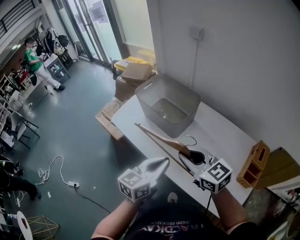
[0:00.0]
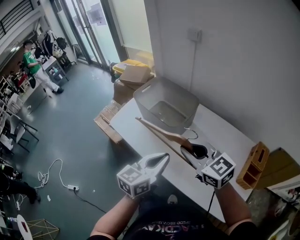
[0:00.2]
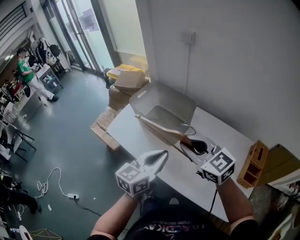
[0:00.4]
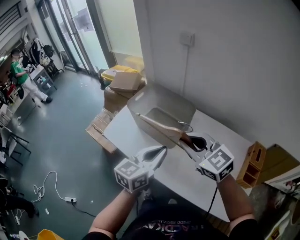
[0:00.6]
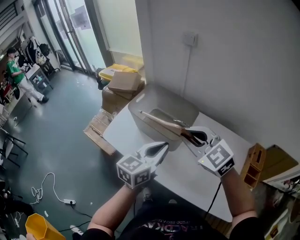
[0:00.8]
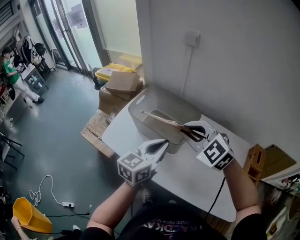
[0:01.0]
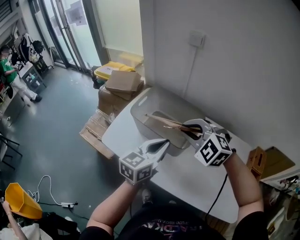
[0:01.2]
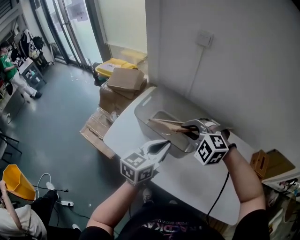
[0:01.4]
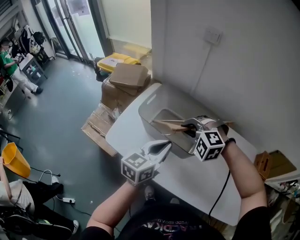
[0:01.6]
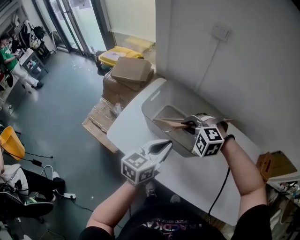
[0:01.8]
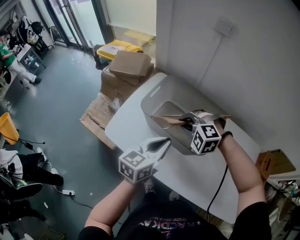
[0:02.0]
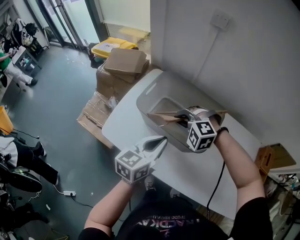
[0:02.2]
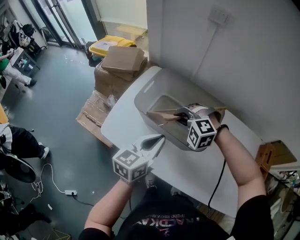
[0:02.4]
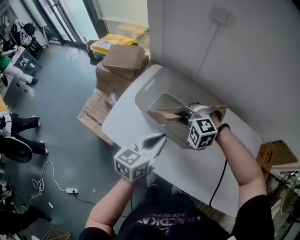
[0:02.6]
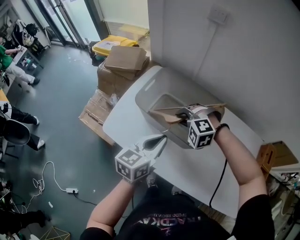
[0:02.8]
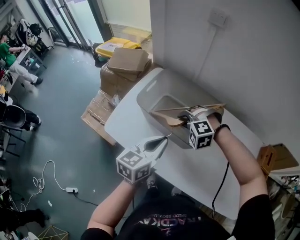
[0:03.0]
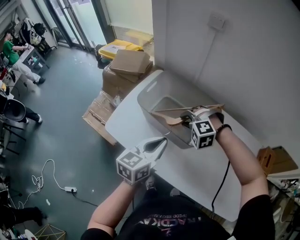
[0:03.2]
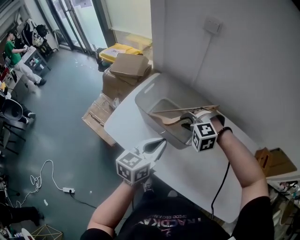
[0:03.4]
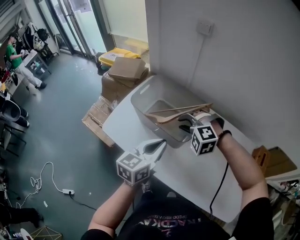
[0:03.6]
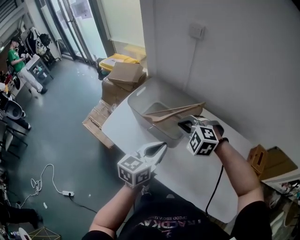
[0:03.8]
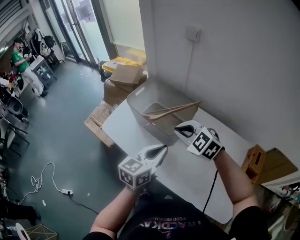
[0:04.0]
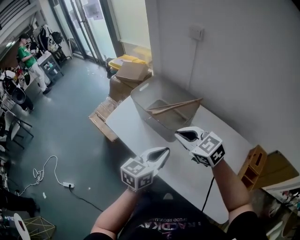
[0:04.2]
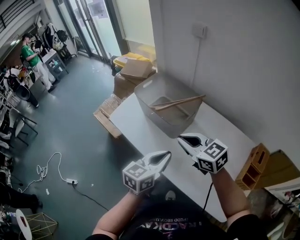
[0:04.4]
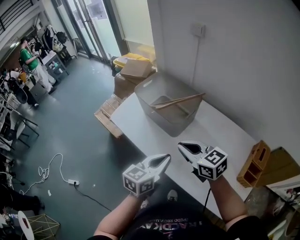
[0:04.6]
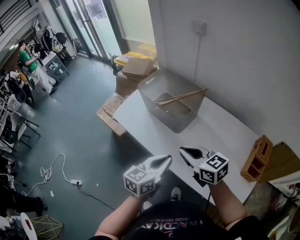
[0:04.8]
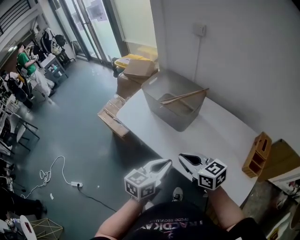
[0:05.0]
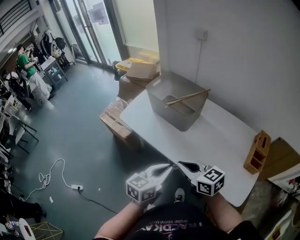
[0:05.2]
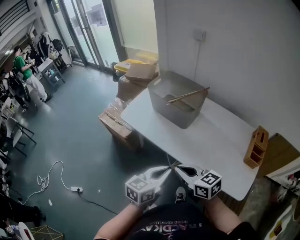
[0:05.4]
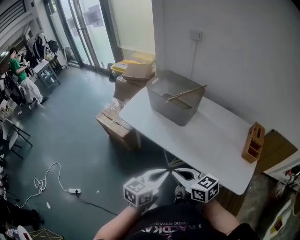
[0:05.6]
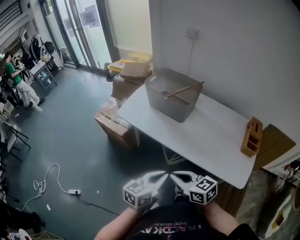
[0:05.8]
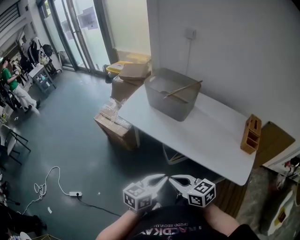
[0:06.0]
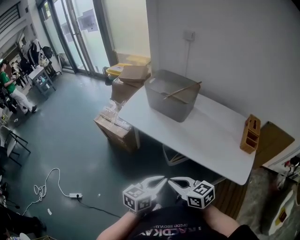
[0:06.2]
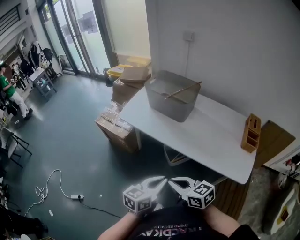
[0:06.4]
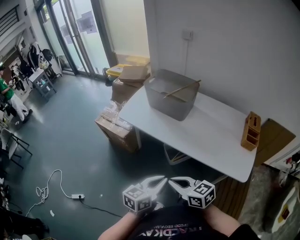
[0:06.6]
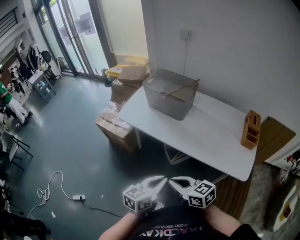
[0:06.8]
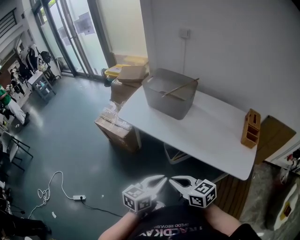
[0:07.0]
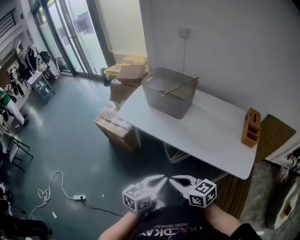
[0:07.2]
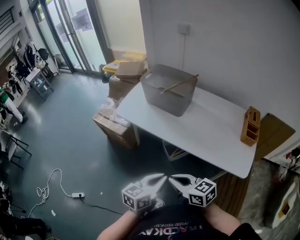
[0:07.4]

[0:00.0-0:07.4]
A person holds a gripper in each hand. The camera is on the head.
0:00.0 to 0:01.4: The two grippers go approximately 25 cm forward and to the left. The right gripper rotates around the line of its fingers by roughly 60 degrees, counterclockwise from behind.
0:01.4 to 0:03.0: The left gripper shifts roughly 5 cm downward; the right gripper goes about 15 cm downward, and rotates roughly 20 degrees.
0:03.0 to 0:04.4: The right gripper shifts roughly 30 cm backward, upward and to the right, twists about 60 degrees clockwise, seen from behind, and closes up, while the left gripper heads backward and to the right, covering some 25 cm.
0:04.4 to 0:06.0: Both grippers move backward and to the left, some 35 cm. The right gripper turns by roughly 20 degrees.
0:06.0 to 0:07.4: There are only small adjustments of the grippers.

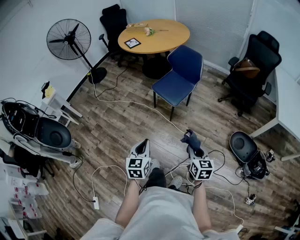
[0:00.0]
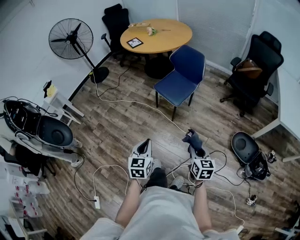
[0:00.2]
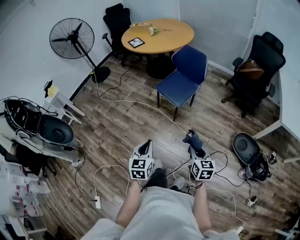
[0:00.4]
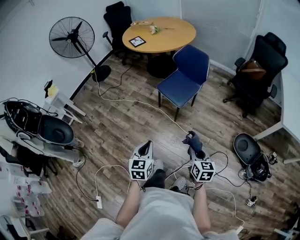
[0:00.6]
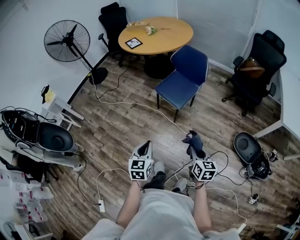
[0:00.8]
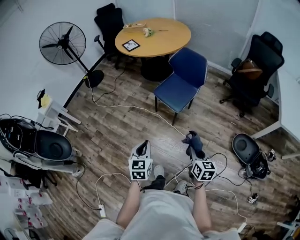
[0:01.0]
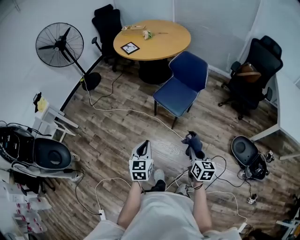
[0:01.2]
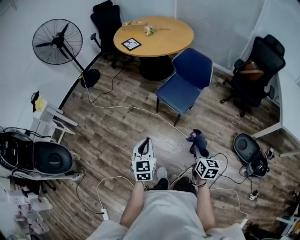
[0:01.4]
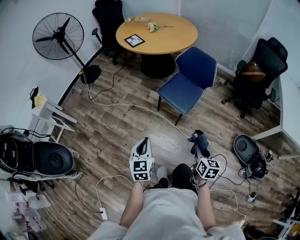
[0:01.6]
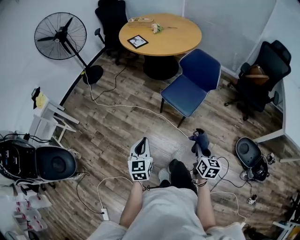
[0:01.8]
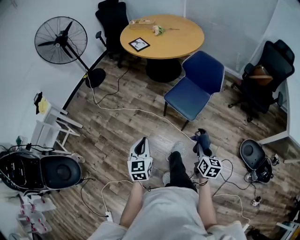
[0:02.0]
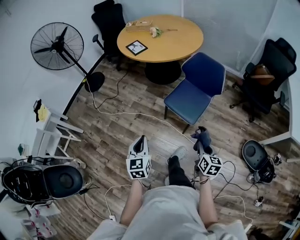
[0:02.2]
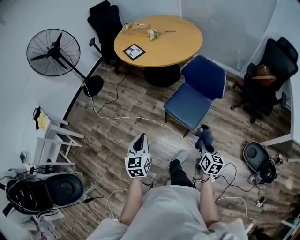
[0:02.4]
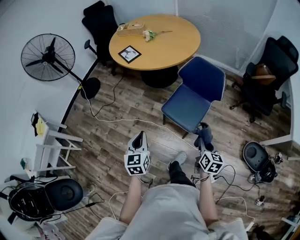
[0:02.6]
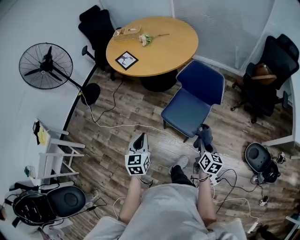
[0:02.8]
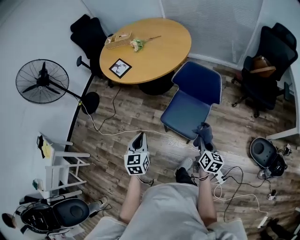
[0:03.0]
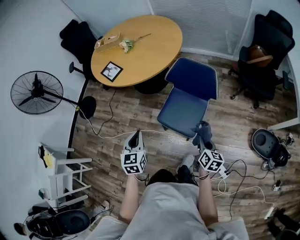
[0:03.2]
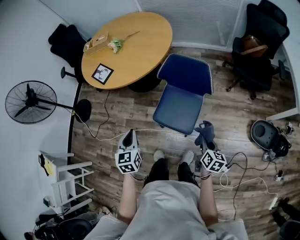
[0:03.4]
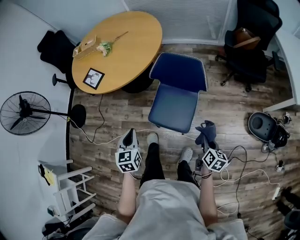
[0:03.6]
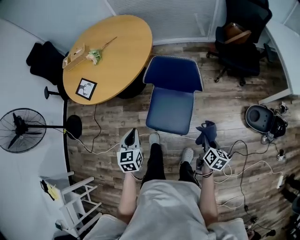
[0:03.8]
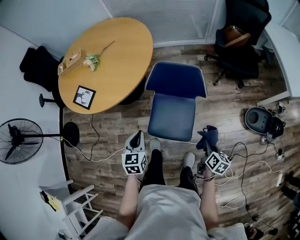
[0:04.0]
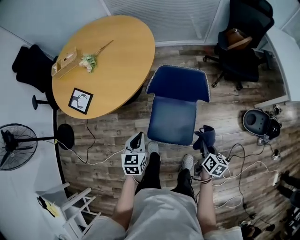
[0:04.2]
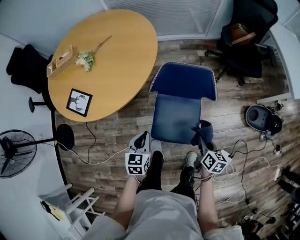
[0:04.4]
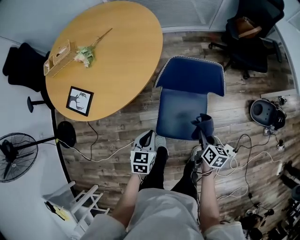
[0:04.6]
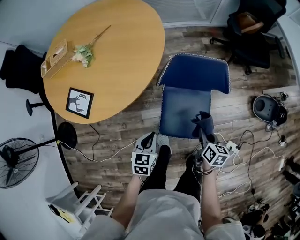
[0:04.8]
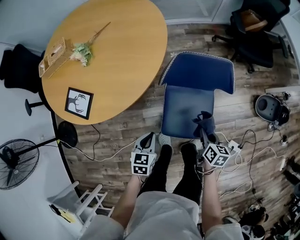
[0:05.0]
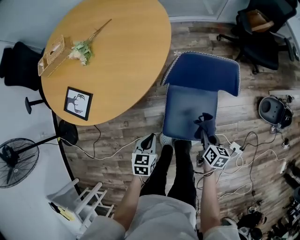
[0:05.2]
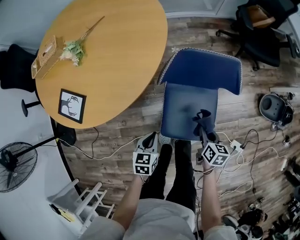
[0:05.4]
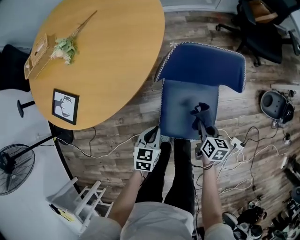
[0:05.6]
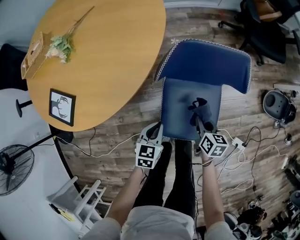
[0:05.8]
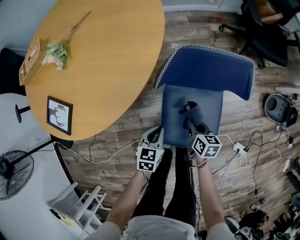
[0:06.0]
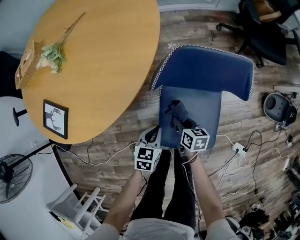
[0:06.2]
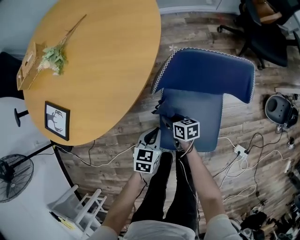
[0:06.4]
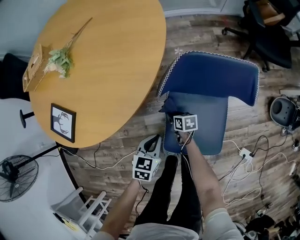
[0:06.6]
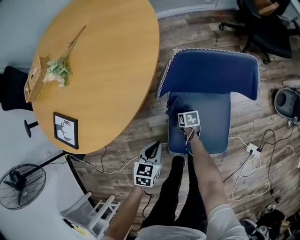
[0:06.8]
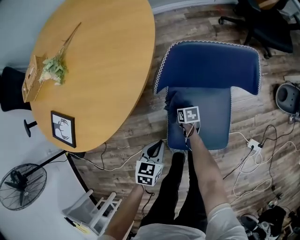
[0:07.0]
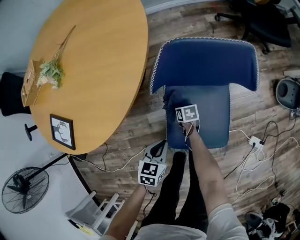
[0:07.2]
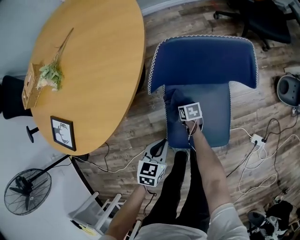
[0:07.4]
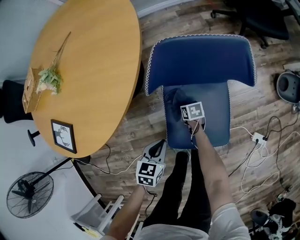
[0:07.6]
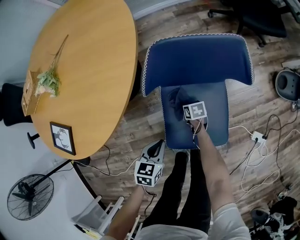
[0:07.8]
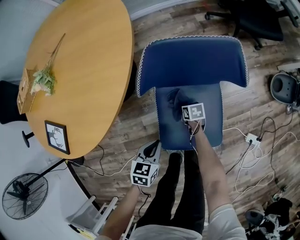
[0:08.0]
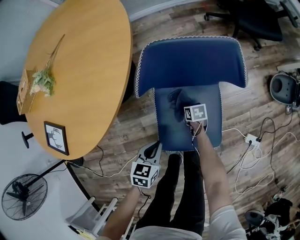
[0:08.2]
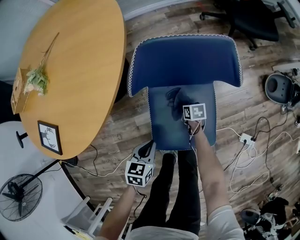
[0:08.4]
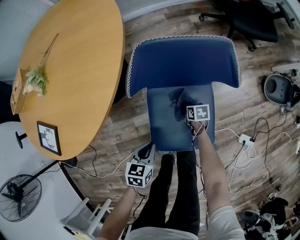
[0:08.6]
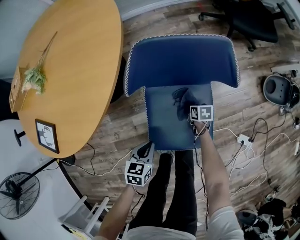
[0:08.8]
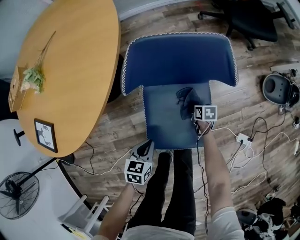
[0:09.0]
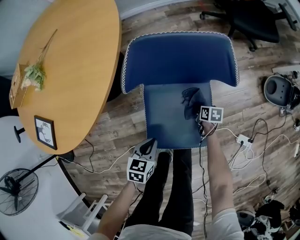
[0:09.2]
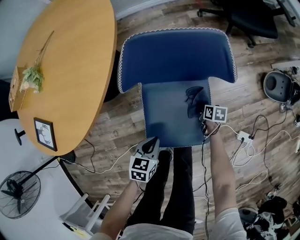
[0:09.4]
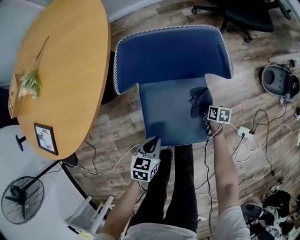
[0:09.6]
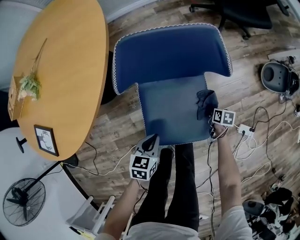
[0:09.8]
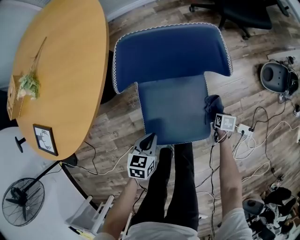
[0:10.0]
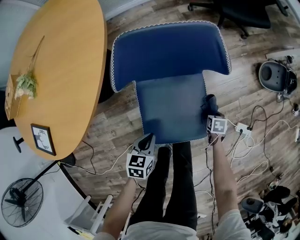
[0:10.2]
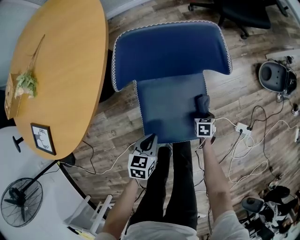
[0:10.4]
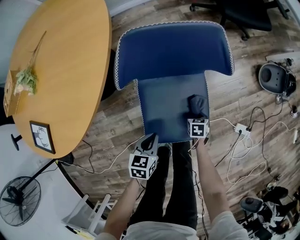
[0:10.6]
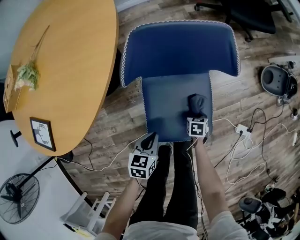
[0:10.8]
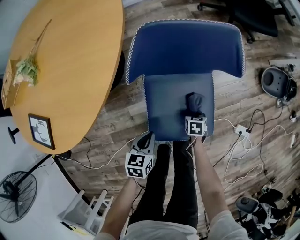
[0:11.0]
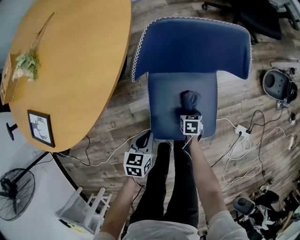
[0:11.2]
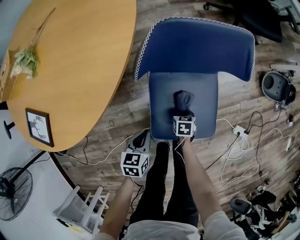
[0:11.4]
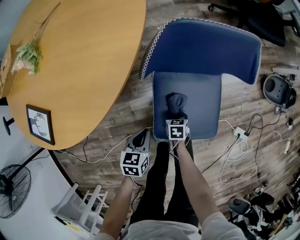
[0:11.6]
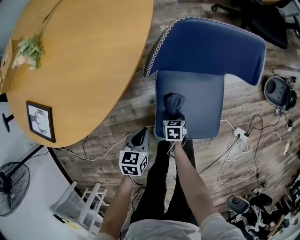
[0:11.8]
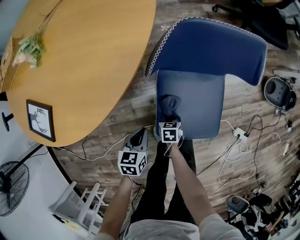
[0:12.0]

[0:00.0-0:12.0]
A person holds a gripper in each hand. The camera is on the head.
0:00.0 to 0:01.6: Both grippers move forward and to the left, approximately 20 cm.
0:01.6 to 0:03.0: The two grippers go roughly 35 cm forward.
0:03.0 to 0:04.4: The right gripper shifts by approximately 15 cm, and turns by roughly 20 degrees. Meanwhile the left gripper changes place by approximately 30 cm, and turns by about 30 degrees.
0:04.4 to 0:06.0: The left gripper is displaced downward by roughly 20 cm. The right gripper travels downward, to the left and forward by some 30 cm.
0:06.0 to 0:07.6: The right gripper shifts roughly 20 cm downward, and rotates about 20 degrees.
0:07.6 to 0:09.0: The right gripper heads to the right, covering some 15 cm.
0:09.0 to 0:10.4: The right gripper rotates roughly 20 degrees.
0:10.4 to 0:12.0: The left gripper heads to the left, covering approximately 15 cm, while the right gripper goes some 30 cm to the left.

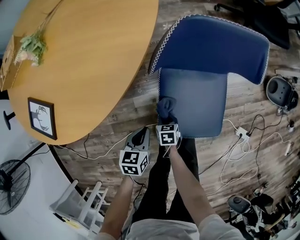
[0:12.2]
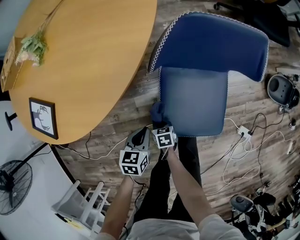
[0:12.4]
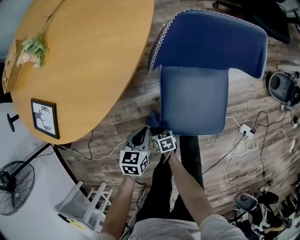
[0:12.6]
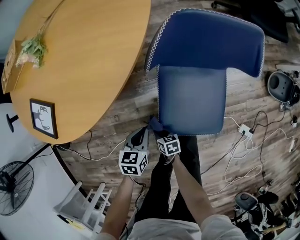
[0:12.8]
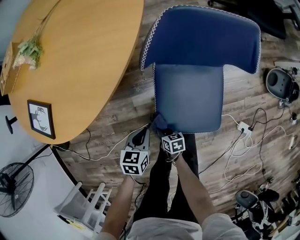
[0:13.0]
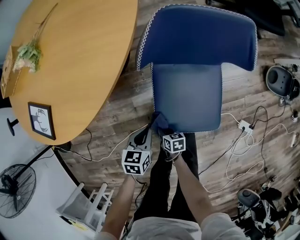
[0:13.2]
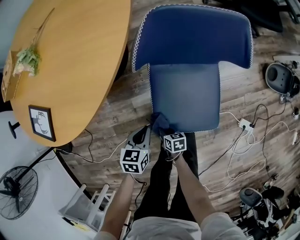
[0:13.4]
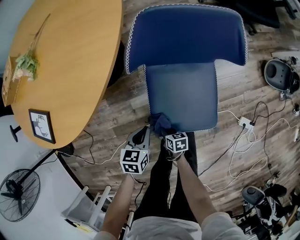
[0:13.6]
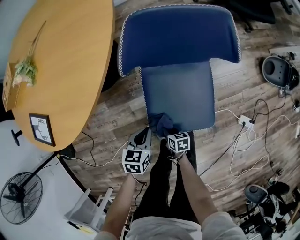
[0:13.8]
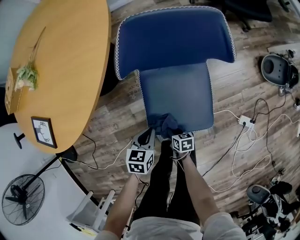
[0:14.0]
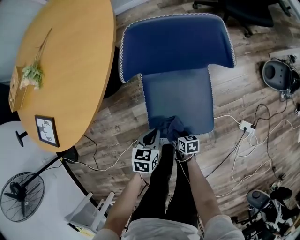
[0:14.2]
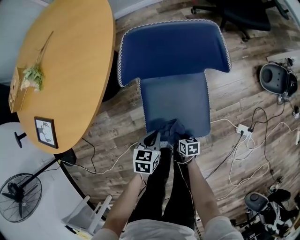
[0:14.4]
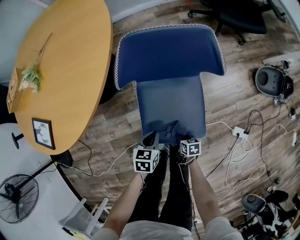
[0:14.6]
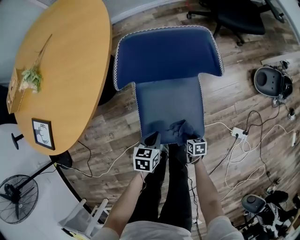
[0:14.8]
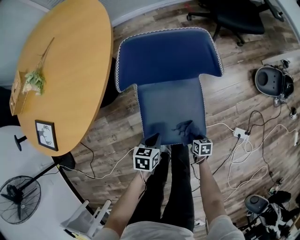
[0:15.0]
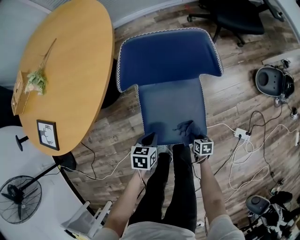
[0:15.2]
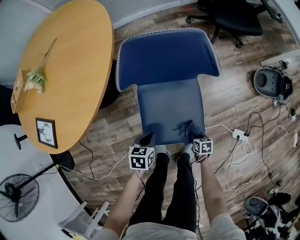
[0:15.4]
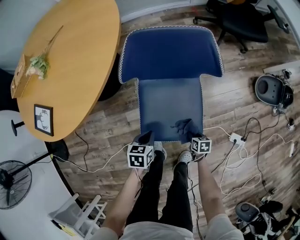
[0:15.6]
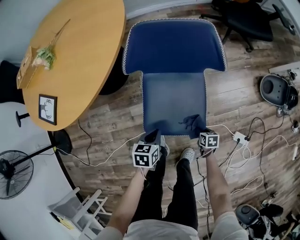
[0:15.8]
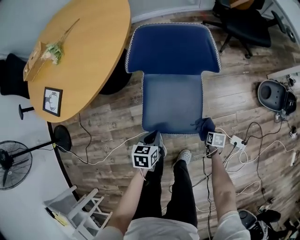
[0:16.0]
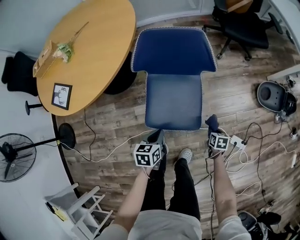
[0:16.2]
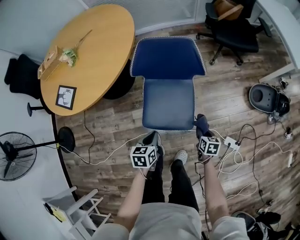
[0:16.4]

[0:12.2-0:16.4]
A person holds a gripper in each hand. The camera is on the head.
0:12.2 to 0:13.6: The left gripper changes place by roughly 5 cm. The right gripper goes approximately 10 cm backward, travels to the left and back again, approximately 10 cm each way, and turns by about 20 degrees.
0:13.6 to 0:15.0: The left gripper heads to the right, covering roughly 10 cm, while the right gripper heads to the right, covering roughly 25 cm.
0:15.0 to 0:16.4: The right gripper shifts roughly 20 cm upward and to the right; the left gripper heads upward and backward, covering approximately 15 cm, and changes its angle by roughly 20 degrees.
